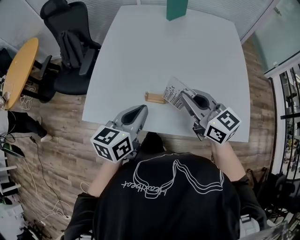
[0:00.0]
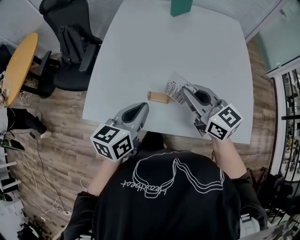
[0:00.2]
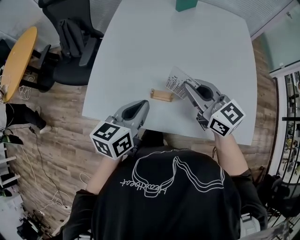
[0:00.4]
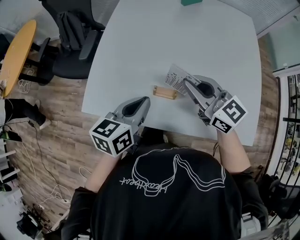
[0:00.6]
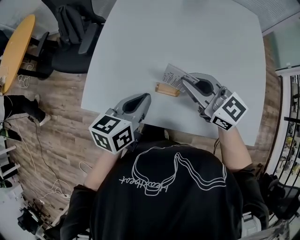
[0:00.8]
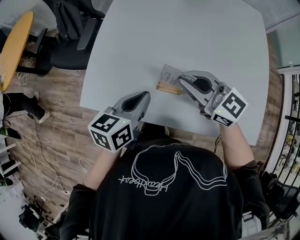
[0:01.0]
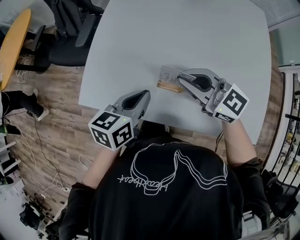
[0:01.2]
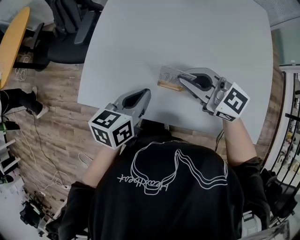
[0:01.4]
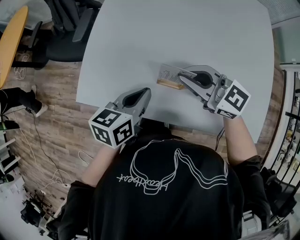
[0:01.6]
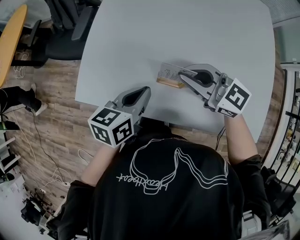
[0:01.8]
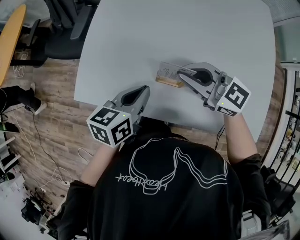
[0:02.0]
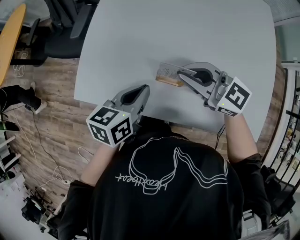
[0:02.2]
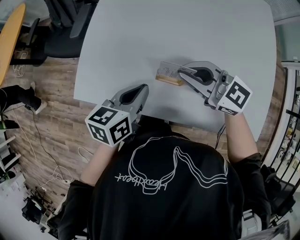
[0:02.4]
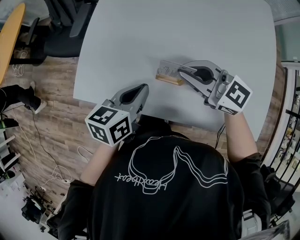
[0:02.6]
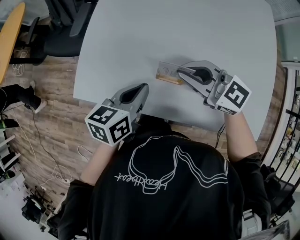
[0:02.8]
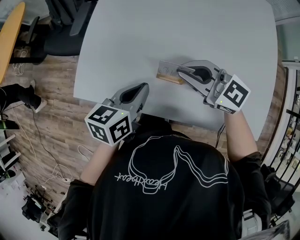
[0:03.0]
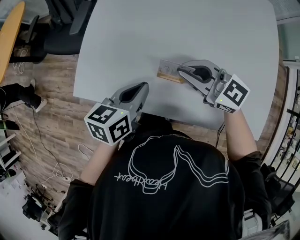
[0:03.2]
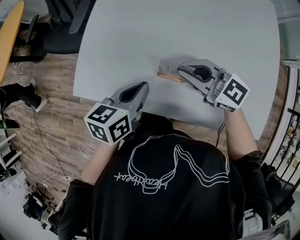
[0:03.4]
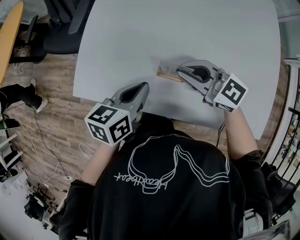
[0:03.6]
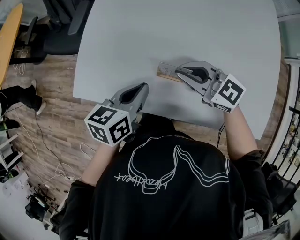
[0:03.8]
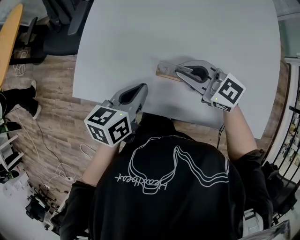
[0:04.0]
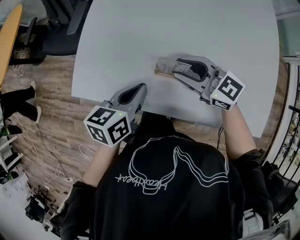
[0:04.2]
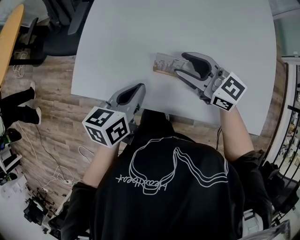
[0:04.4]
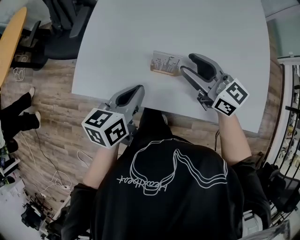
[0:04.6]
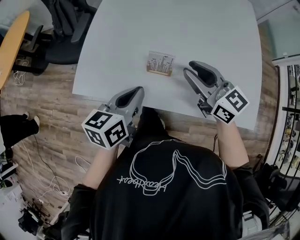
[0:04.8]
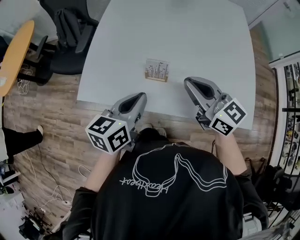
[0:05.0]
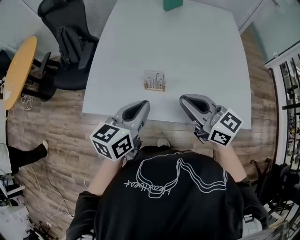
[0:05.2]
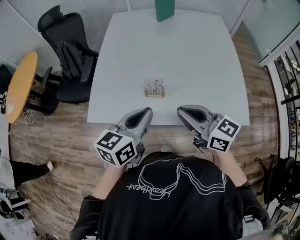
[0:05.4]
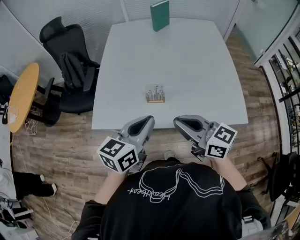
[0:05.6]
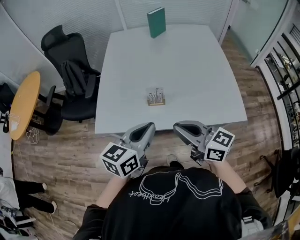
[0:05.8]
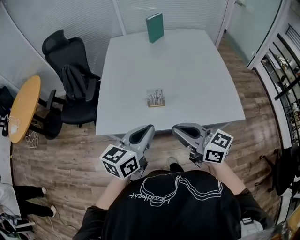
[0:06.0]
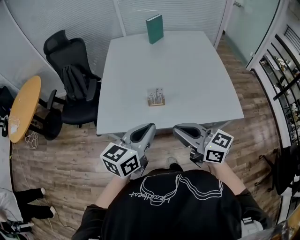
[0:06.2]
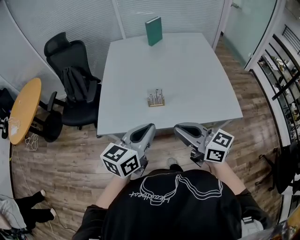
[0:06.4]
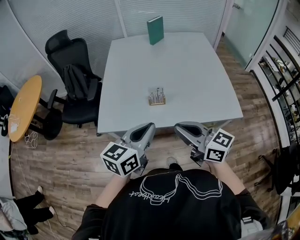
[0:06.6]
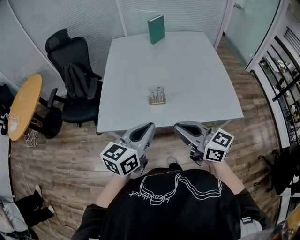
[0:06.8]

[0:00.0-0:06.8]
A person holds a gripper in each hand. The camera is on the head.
0:00.0 to 0:01.4: The right gripper shifts approximately 15 cm forward, downward and to the left, and turns by some 30 degrees; the left gripper moves downward and forward, some 15 cm.
0:01.4 to 0:02.8: There are only small adjustments of the grippers.
0:02.8 to 0:04.0: The right gripper heads downward, covering roughly 5 cm.
0:04.0 to 0:05.4: The right gripper is displaced backward and upward by about 25 cm, changes its angle by approximately 30 degrees, and opens, then closes once more. Meanwhile the left gripper shifts some 20 cm upward and backward, and swivels approximately 20 degrees.
0:05.4 to 0:06.8: The two grippers go some 10 cm backward.

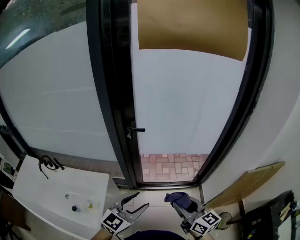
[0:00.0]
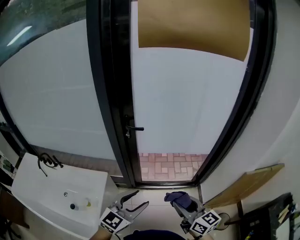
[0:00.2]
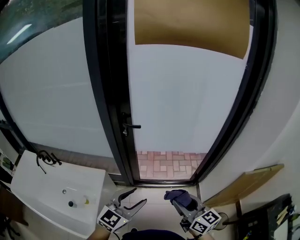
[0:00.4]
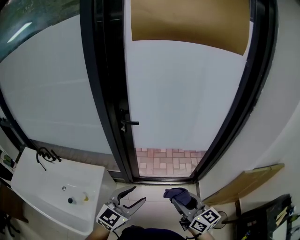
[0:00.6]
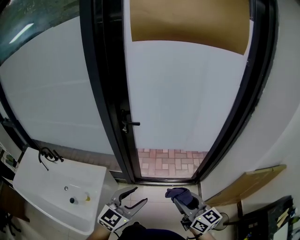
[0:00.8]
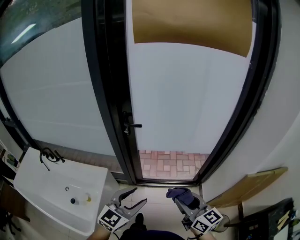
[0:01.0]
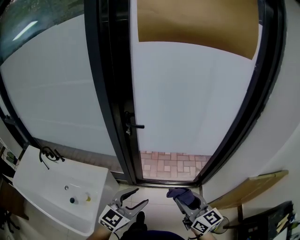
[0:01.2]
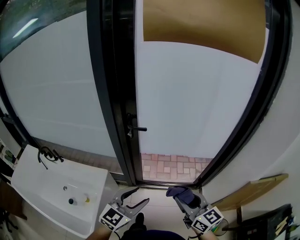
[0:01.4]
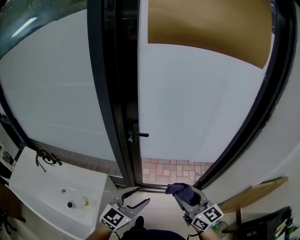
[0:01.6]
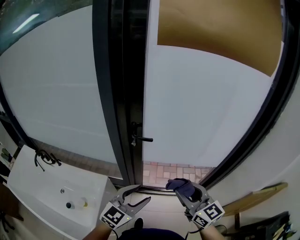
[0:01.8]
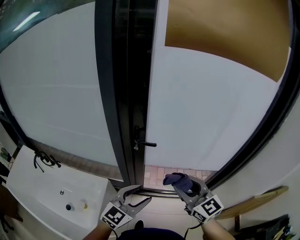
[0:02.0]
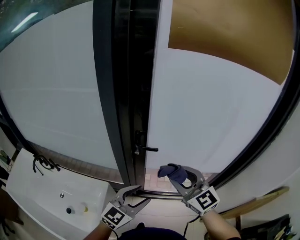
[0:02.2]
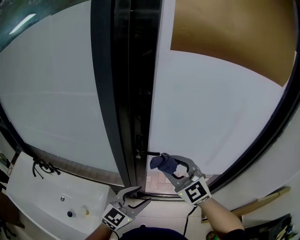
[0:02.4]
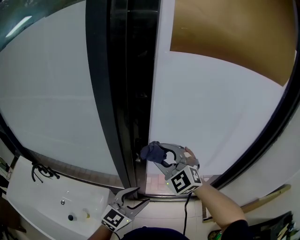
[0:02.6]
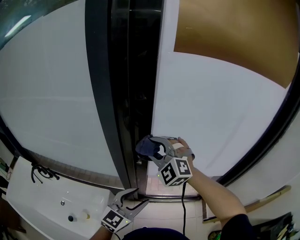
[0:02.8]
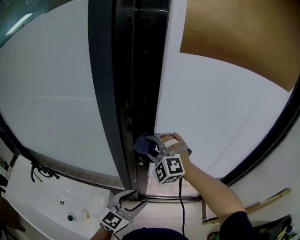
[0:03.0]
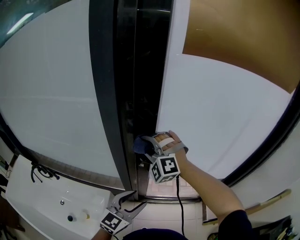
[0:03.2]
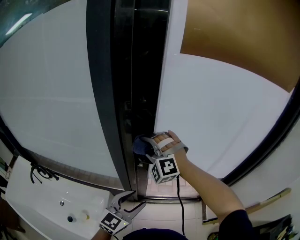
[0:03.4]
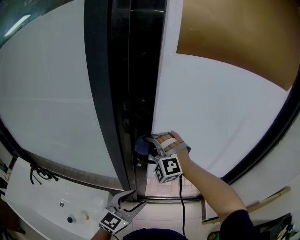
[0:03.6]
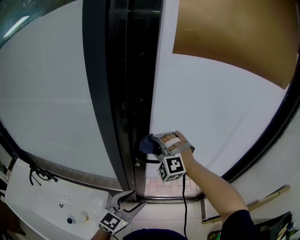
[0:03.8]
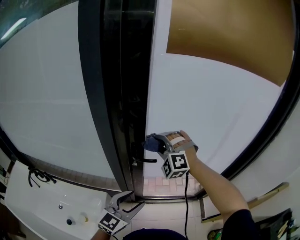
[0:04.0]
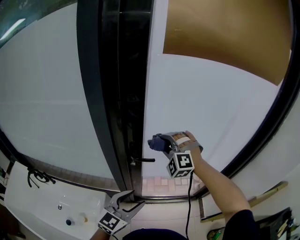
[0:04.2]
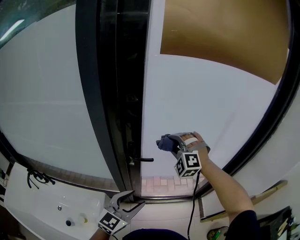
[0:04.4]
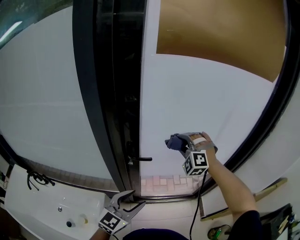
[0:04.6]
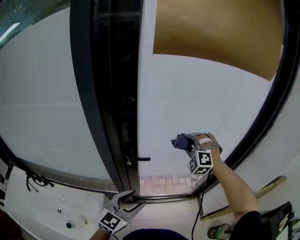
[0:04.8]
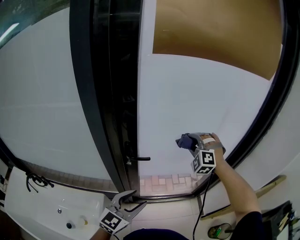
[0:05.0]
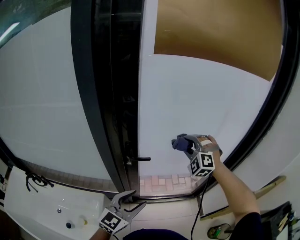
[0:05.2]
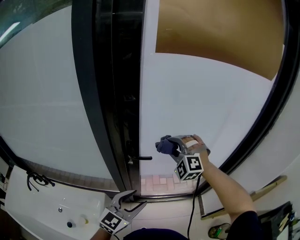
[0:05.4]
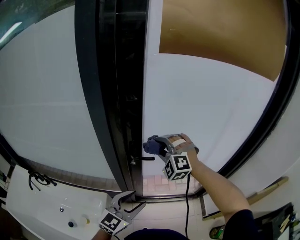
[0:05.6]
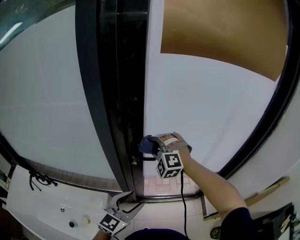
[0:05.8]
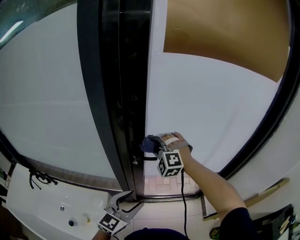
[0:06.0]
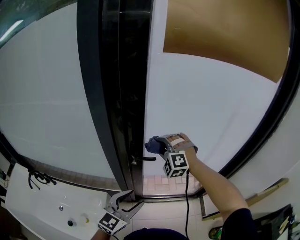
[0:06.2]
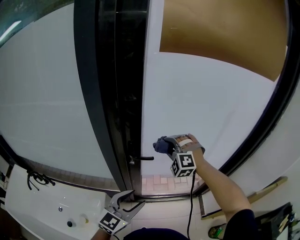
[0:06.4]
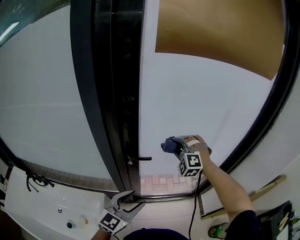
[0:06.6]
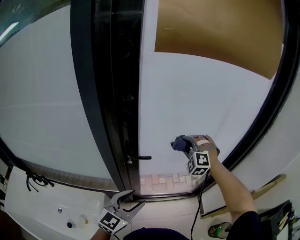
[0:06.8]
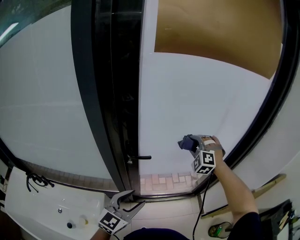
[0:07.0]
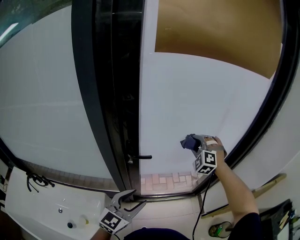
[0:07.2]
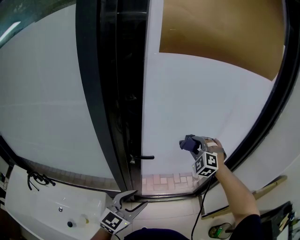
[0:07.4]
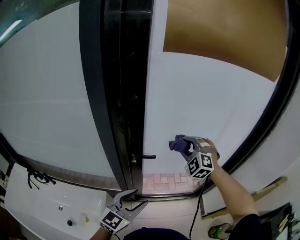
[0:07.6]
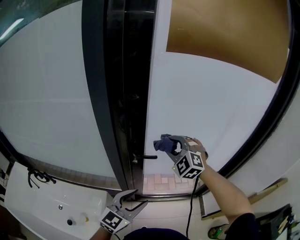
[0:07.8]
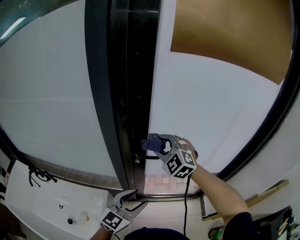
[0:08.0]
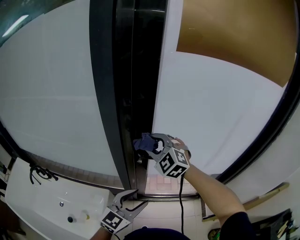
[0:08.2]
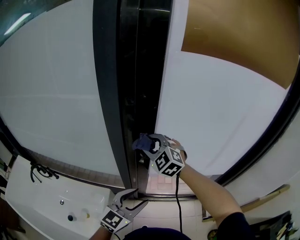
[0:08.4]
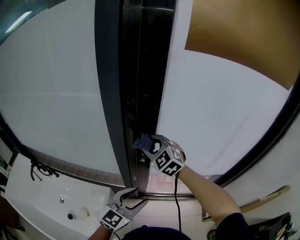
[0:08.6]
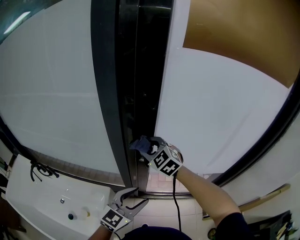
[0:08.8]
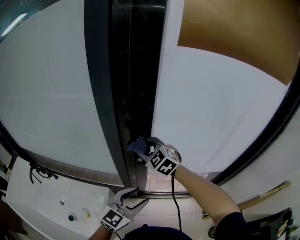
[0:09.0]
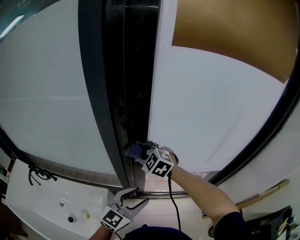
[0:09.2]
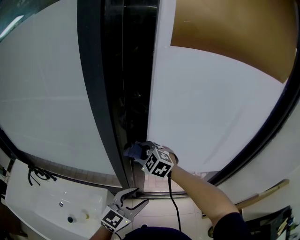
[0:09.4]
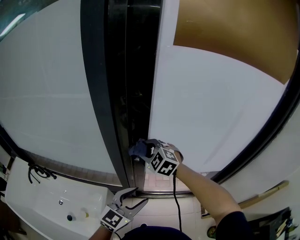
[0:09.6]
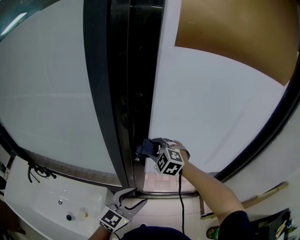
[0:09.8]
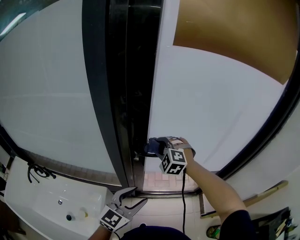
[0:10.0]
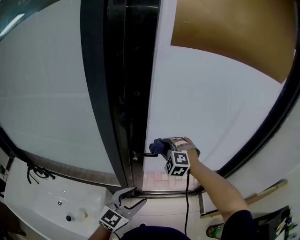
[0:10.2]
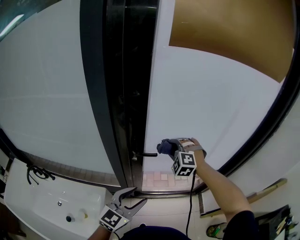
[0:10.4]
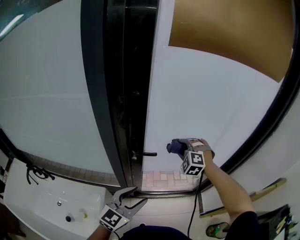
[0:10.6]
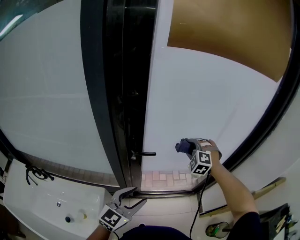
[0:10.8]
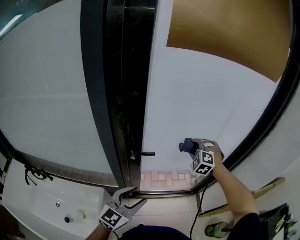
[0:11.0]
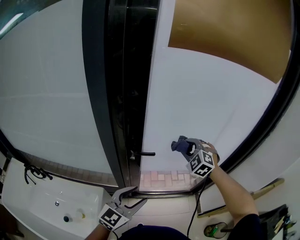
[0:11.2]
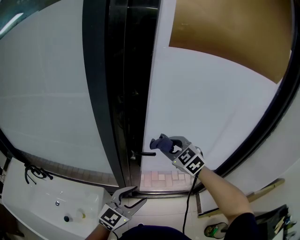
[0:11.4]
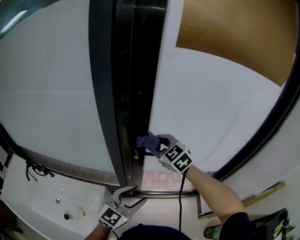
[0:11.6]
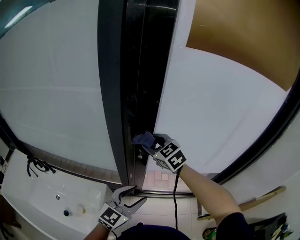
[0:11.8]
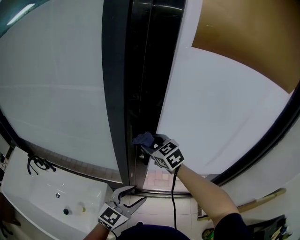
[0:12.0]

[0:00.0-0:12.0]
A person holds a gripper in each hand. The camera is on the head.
0:00.0 to 0:01.6: The two grippers go some 10 cm forward.
0:01.6 to 0:03.0: The left gripper heads forward and to the left, covering some 20 cm. Meanwhile the right gripper heads forward and to the left, covering some 40 cm, and rolls counterclockwise, seen from behind, by about 80 degrees.
0:03.0 to 0:04.4: The right gripper goes approximately 15 cm to the right.
0:04.4 to 0:06.0: The right gripper goes approximately 10 cm to the left.
0:06.0 to 0:07.6: The right gripper goes about 15 cm to the right.
0:07.6 to 0:09.0: The right gripper heads to the left, covering approximately 20 cm, and rotates roughly 30 degrees.
0:09.0 to 0:10.4: The right gripper goes approximately 15 cm to the right, and swivels roughly 40 degrees.
0:10.4 to 0:12.0: The right gripper goes about 15 cm to the left, and rolls clockwise, seen from behind, by some 50 degrees.

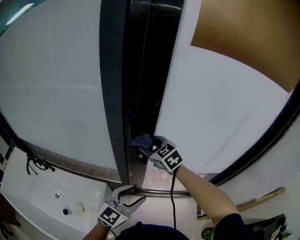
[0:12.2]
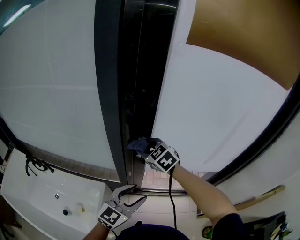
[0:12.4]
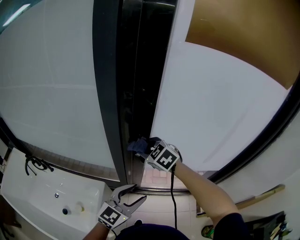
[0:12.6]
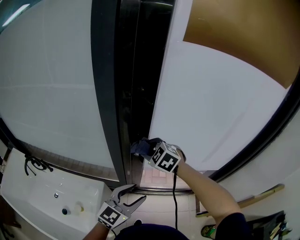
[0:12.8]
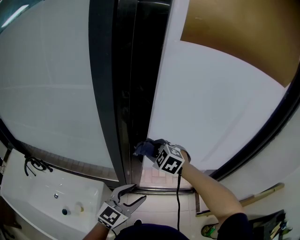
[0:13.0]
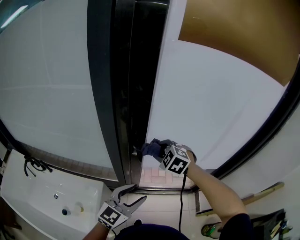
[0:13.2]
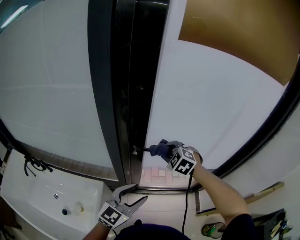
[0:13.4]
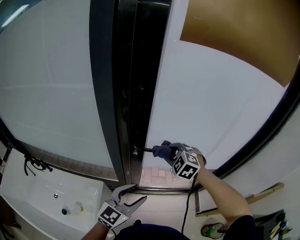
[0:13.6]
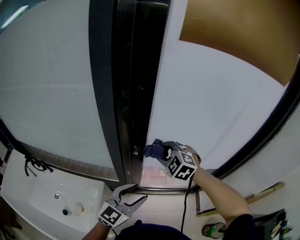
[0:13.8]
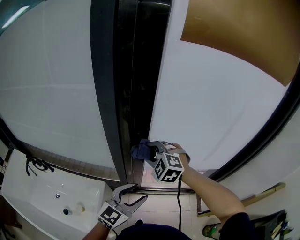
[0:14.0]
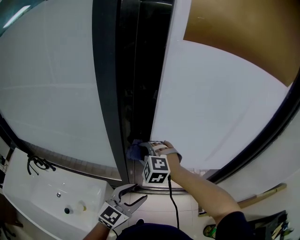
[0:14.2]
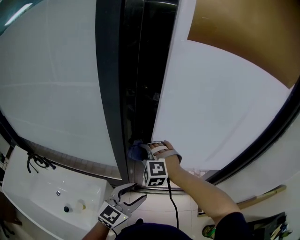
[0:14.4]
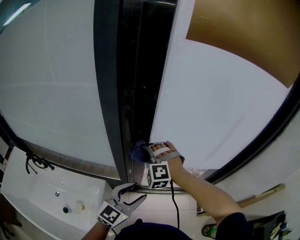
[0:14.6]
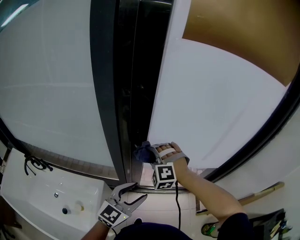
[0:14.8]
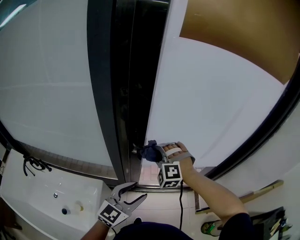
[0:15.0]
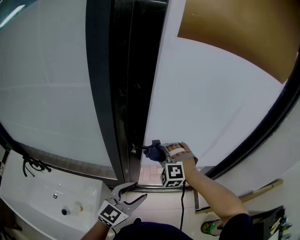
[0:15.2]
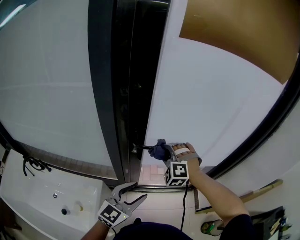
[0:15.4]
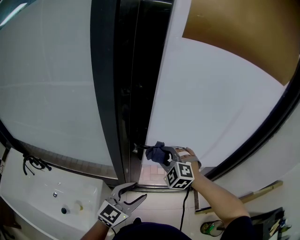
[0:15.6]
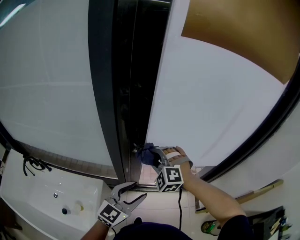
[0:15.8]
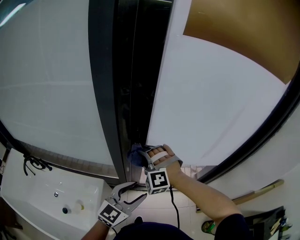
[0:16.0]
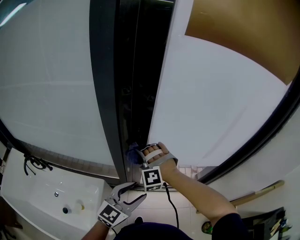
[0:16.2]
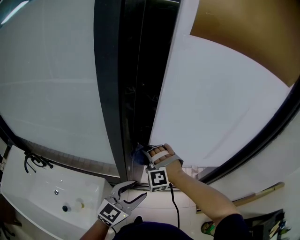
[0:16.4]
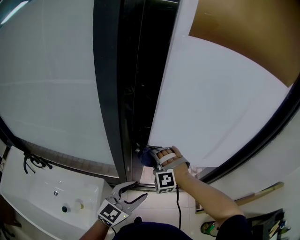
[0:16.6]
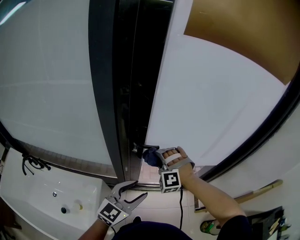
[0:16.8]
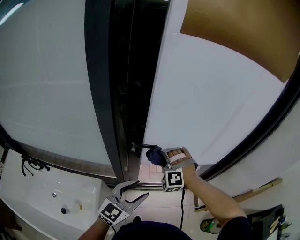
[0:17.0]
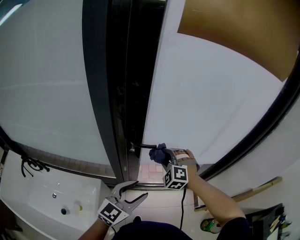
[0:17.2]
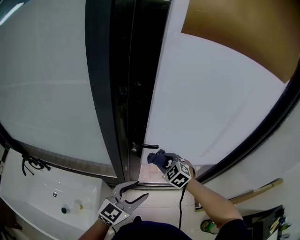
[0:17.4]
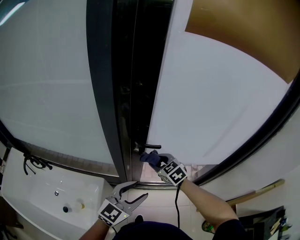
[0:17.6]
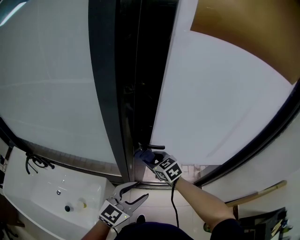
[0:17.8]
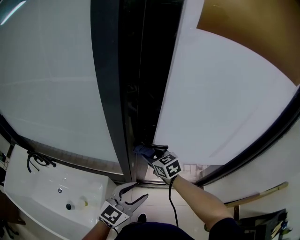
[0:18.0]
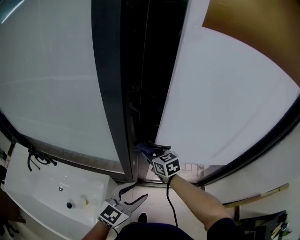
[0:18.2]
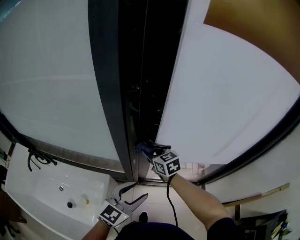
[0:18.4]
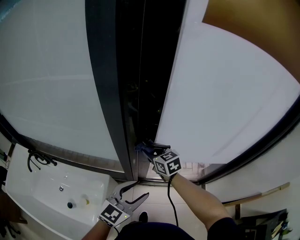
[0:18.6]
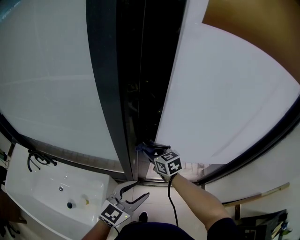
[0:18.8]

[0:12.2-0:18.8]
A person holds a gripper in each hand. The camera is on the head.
0:12.2 to 0:13.8: The right gripper goes roughly 10 cm to the right, and rotates roughly 30 degrees.
0:13.8 to 0:15.4: The right gripper reaches about 10 cm to the left, then returns, and swivels roughly 30 degrees.
0:15.4 to 0:17.2: The right gripper moves roughly 10 cm to the left and comes back.
0:17.2 to 0:18.8: The right gripper moves to the left, some 10 cm, and twists roughly 60 degrees clockwise, seen from behind.
